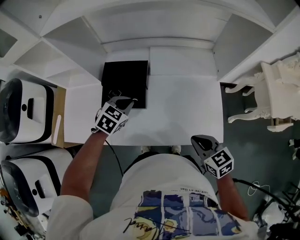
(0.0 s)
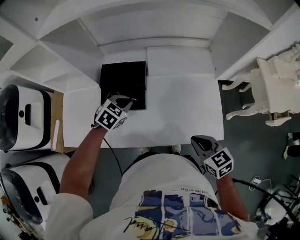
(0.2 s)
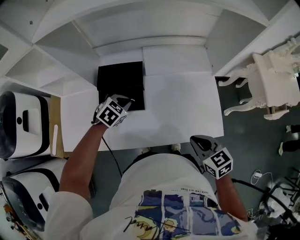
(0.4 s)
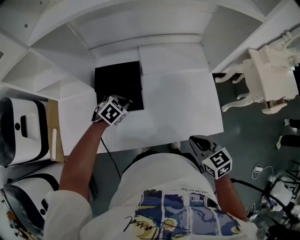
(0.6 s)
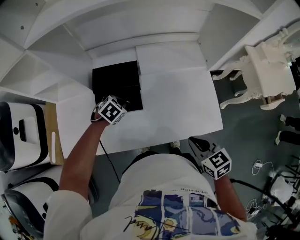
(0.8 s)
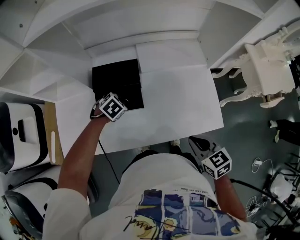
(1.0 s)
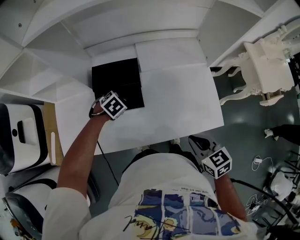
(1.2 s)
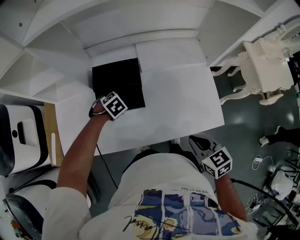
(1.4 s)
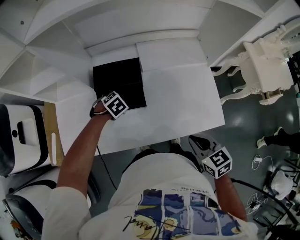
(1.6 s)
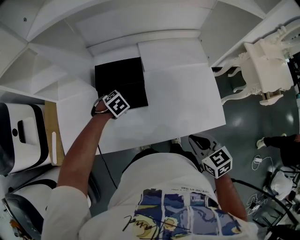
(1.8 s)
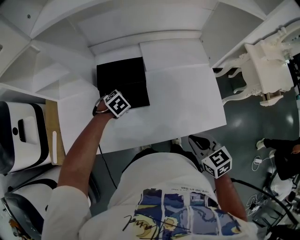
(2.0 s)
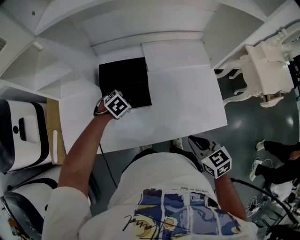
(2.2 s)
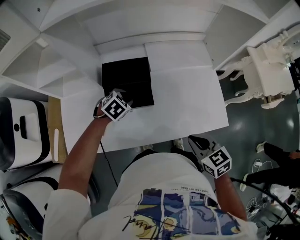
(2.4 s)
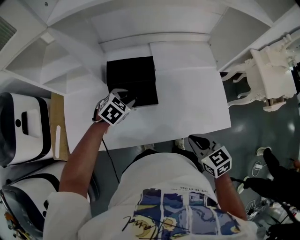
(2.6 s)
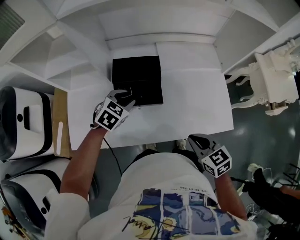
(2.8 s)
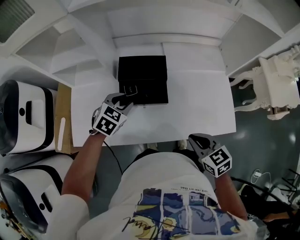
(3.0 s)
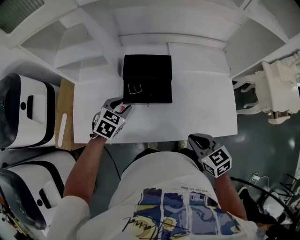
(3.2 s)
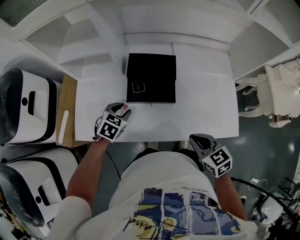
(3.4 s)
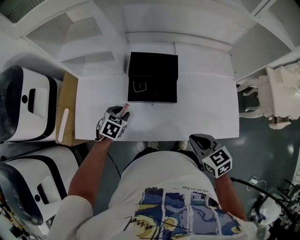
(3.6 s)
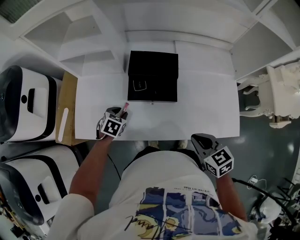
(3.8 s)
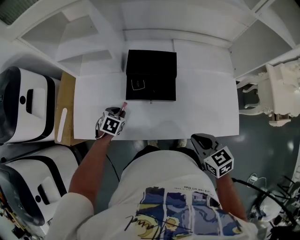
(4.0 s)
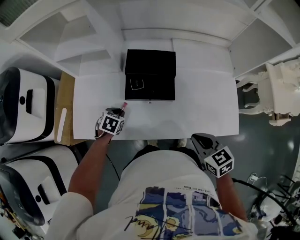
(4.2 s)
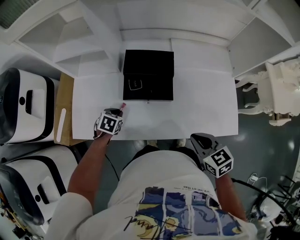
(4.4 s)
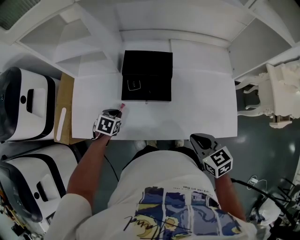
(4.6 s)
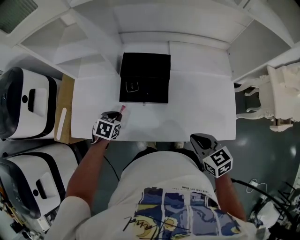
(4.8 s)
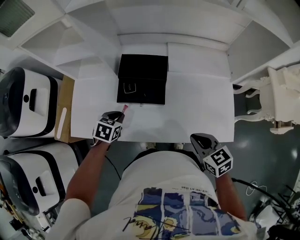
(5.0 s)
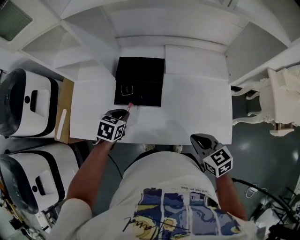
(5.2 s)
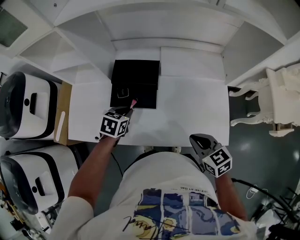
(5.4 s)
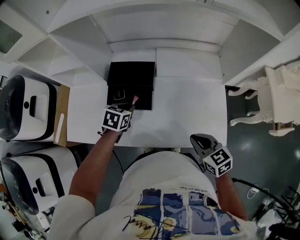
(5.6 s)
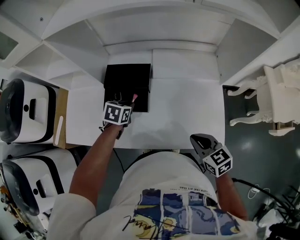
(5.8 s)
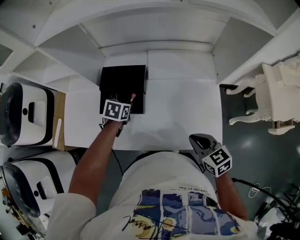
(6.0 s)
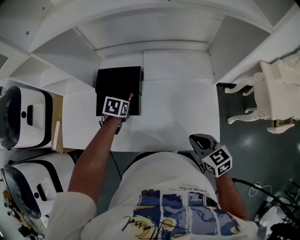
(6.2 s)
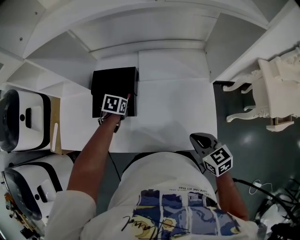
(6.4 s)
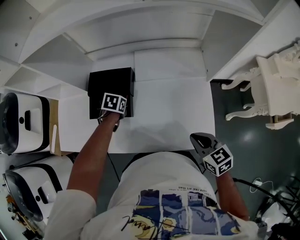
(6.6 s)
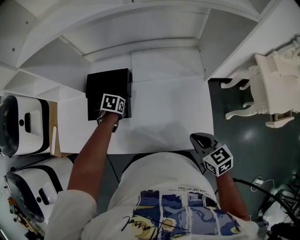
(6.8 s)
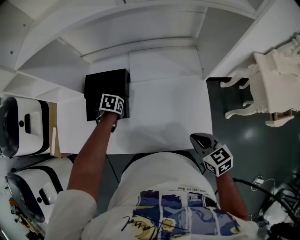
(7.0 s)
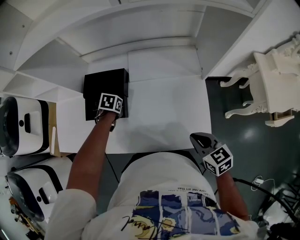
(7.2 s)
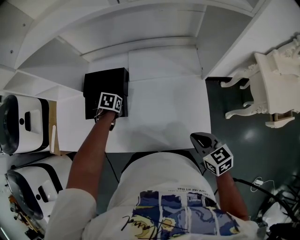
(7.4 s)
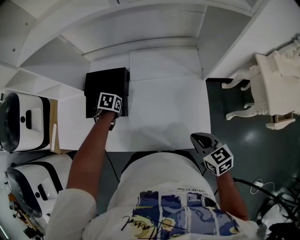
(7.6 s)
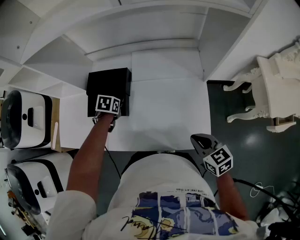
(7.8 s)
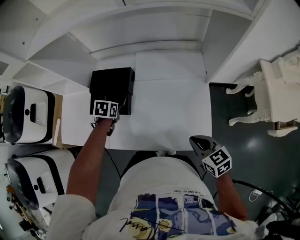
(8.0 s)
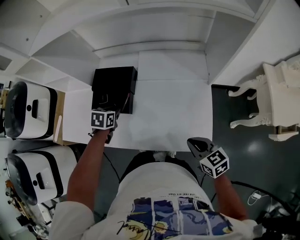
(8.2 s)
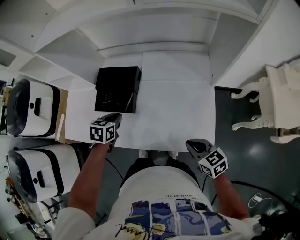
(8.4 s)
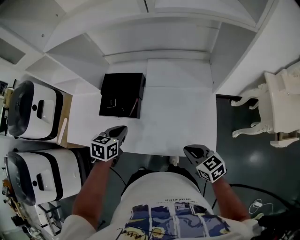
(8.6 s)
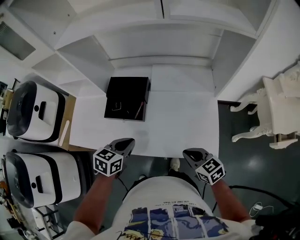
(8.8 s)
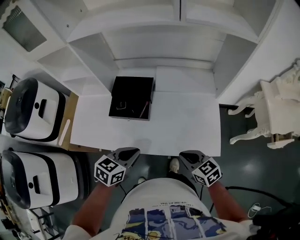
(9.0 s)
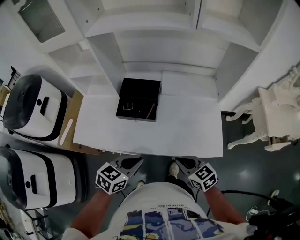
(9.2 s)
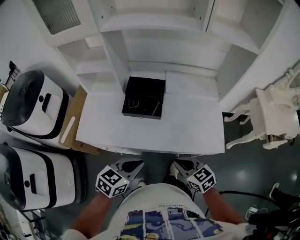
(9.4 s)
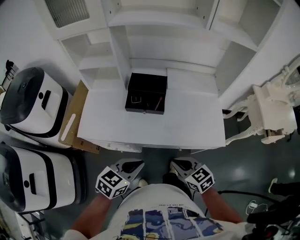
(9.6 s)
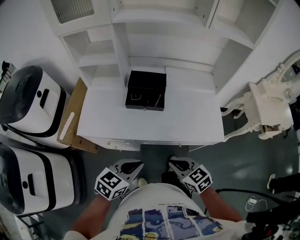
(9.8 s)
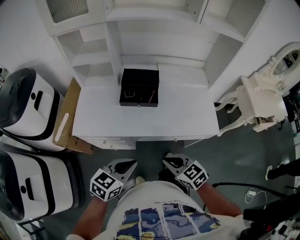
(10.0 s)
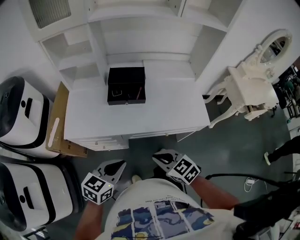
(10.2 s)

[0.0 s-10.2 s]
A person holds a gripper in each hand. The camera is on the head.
0.0 to 1.4 s: The right gripper changes place by about 5 cm. The left gripper heads downward, covering about 10 cm, and swivels roughly 40 degrees.
1.4 to 3.0 s: The right gripper ends up about 10 cm from where it was. Meanwhile the left gripper travels upward by roughly 10 cm, tilts its fingers approximately 30 degrees upward, and opens.
3.0 to 4.4 s: The left gripper travels downward and to the left by some 15 cm, and turns by some 30 degrees.
4.4 to 5.8 s: The left gripper goes some 20 cm to the right and upward; the right gripper is displaced to the right by approximately 15 cm.
5.8 to 7.2 s: The right gripper changes place by some 10 cm, while the left gripper travels downward by about 10 cm.
7.2 to 8.8 s: The left gripper shifts by some 25 cm, and tips its fingers upward by some 30 degrees, while the right gripper moves some 10 cm.
8.8 to 10.2 s: The right gripper moves to the left and backward, roughly 30 cm. The left gripper shifts roughly 25 cm backward and to the left.

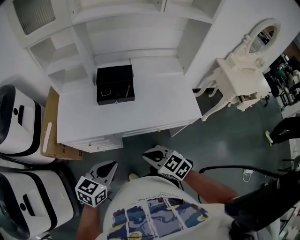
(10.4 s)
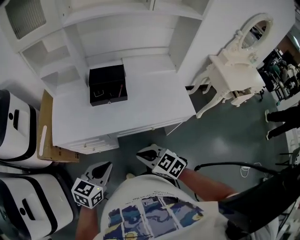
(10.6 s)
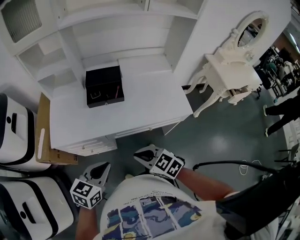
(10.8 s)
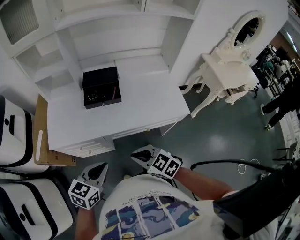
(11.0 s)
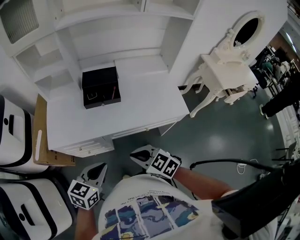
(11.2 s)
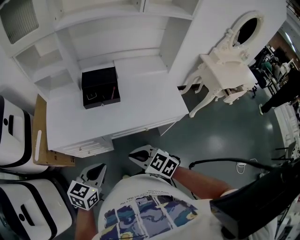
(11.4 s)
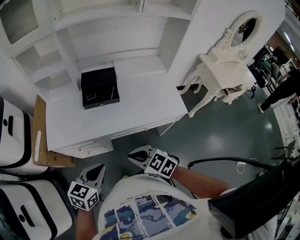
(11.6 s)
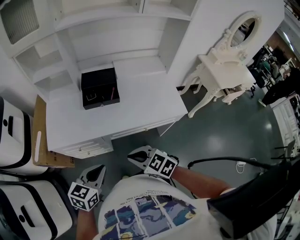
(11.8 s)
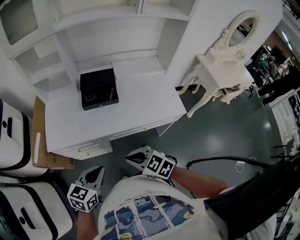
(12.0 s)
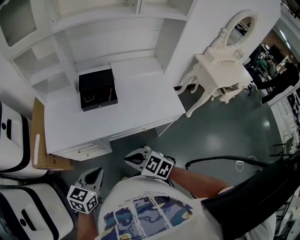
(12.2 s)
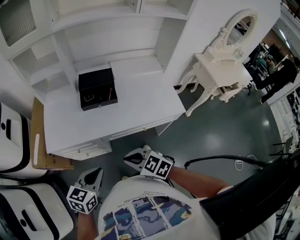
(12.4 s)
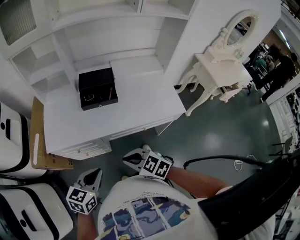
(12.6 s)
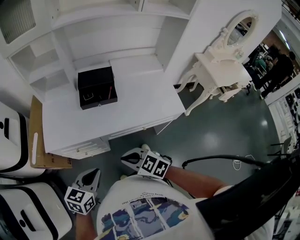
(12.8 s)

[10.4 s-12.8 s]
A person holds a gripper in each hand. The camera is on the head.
10.4 to 12.8 s: The grippers stay close to where they were, moving slightly.

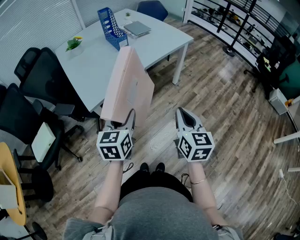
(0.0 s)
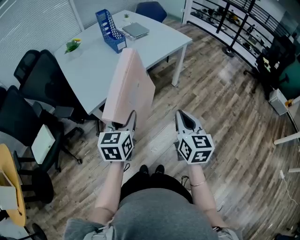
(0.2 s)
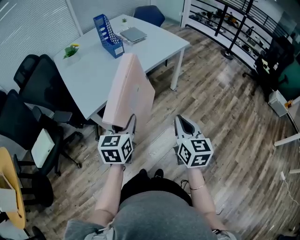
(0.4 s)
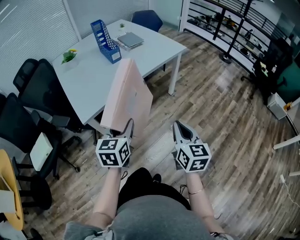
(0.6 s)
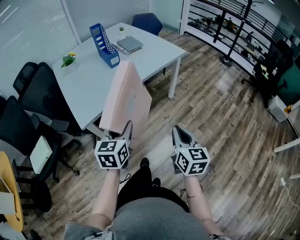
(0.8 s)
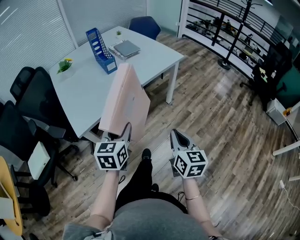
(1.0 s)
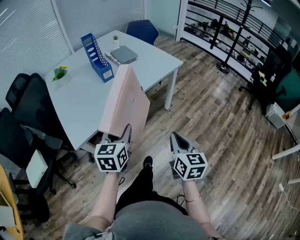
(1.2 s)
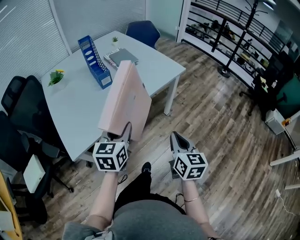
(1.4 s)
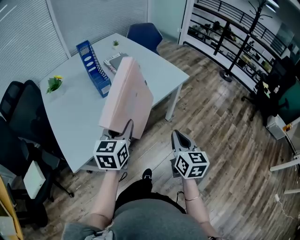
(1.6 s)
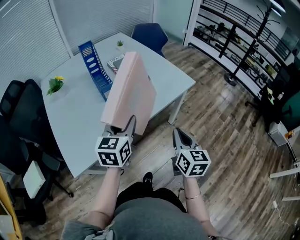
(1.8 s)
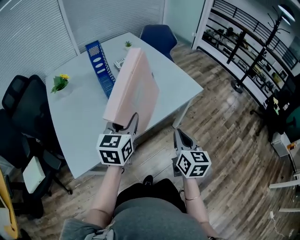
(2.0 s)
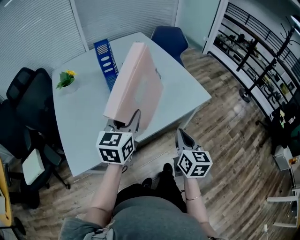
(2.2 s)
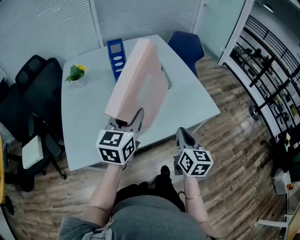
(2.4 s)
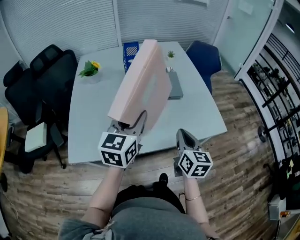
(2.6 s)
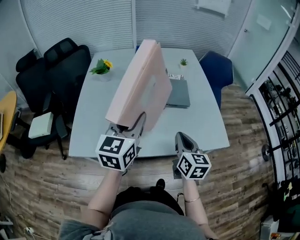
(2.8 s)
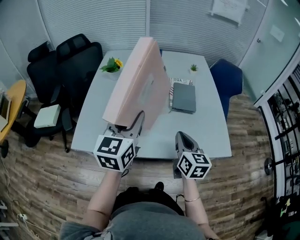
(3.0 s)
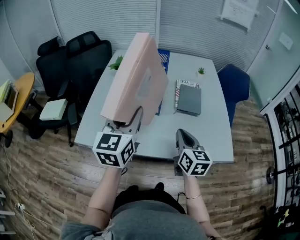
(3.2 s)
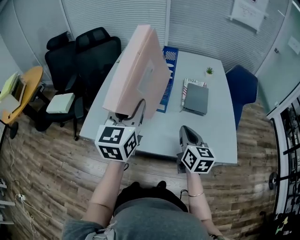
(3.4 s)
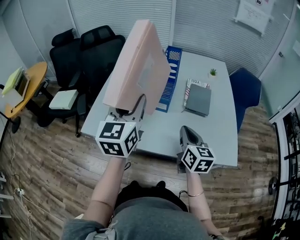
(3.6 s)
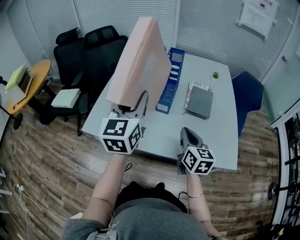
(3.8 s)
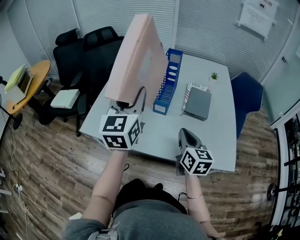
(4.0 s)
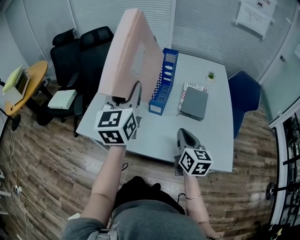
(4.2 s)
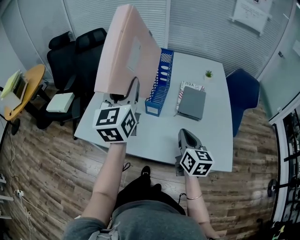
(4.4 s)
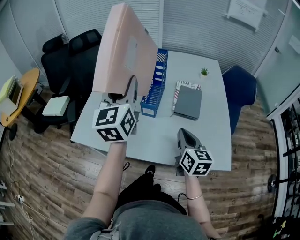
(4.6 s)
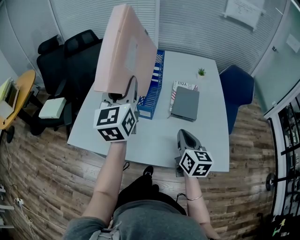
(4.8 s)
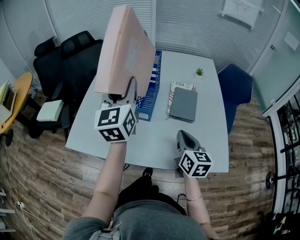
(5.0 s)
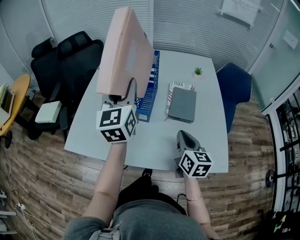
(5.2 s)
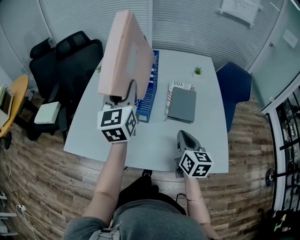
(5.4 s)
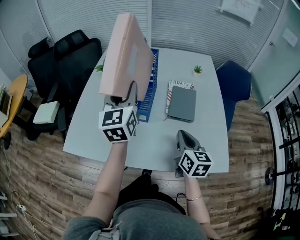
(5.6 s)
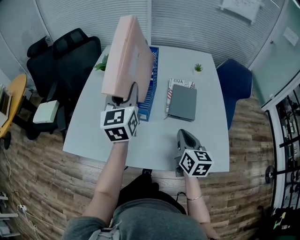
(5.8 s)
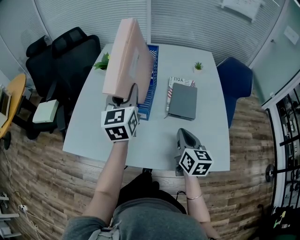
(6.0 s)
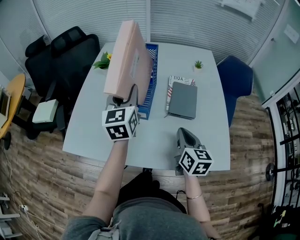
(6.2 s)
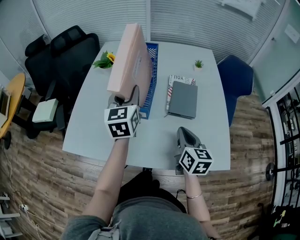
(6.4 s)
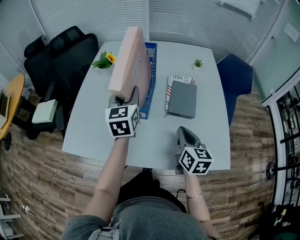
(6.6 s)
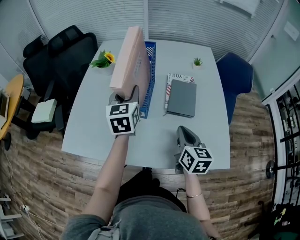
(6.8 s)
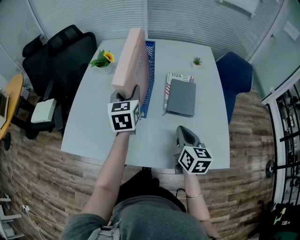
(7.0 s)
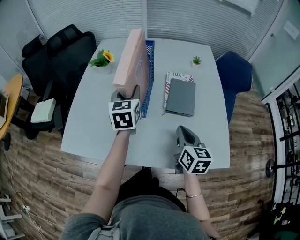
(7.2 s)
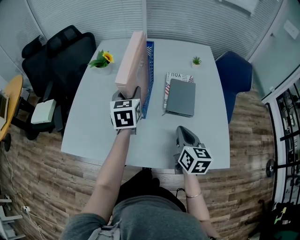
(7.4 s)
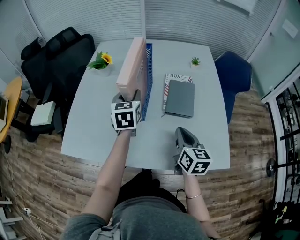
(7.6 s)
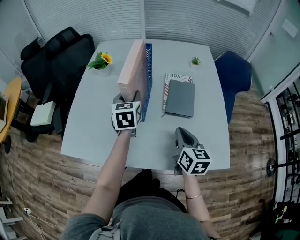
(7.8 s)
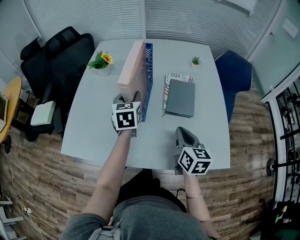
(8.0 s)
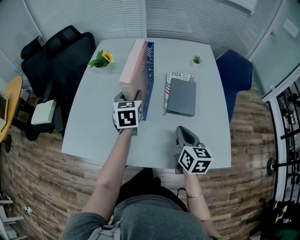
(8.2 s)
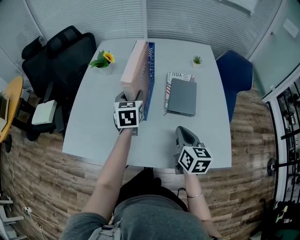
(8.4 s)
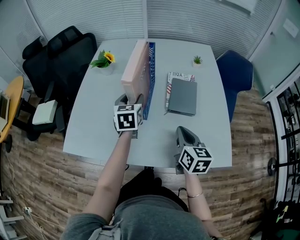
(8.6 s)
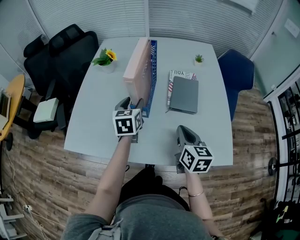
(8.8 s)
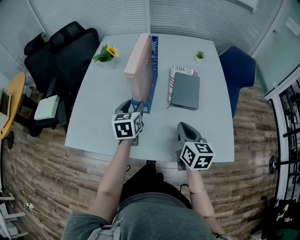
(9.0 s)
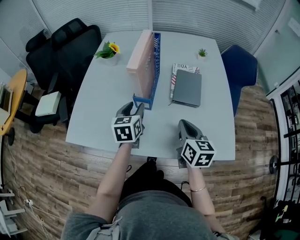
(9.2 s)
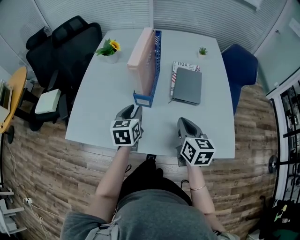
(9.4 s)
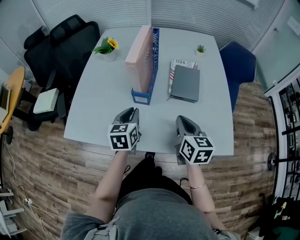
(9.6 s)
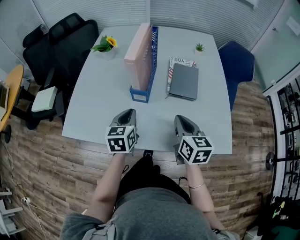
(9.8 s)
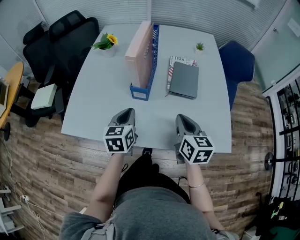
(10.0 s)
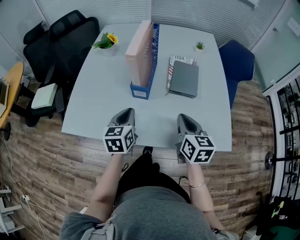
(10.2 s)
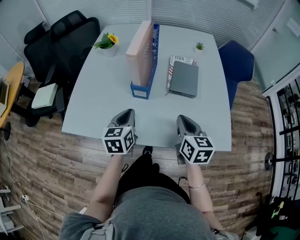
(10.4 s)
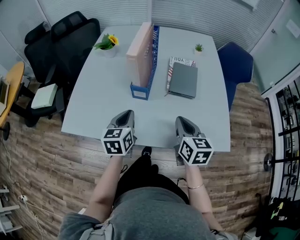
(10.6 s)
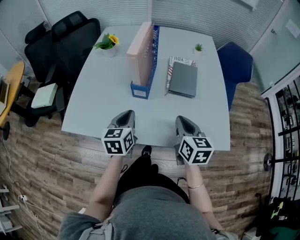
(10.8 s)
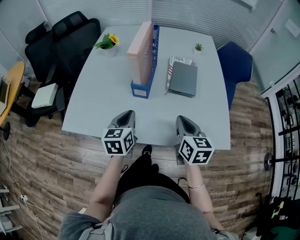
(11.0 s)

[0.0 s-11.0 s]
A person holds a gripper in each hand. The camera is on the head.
0.0 to 1.6 s: The grippers both shift forward by approximately 25 cm.
1.6 to 3.2 s: The left gripper shifts by roughly 20 cm, and turns by approximately 50 degrees. The right gripper moves about 30 cm, and swivels some 50 degrees.
3.2 to 4.8 s: The right gripper shifts roughly 5 cm to the right; the left gripper is displaced forward and upward by roughly 10 cm.
4.8 to 6.2 s: The left gripper heads downward and forward, covering roughly 10 cm.
6.2 to 7.8 s: The left gripper travels downward by about 10 cm.
7.8 to 9.4 s: The left gripper shifts roughly 15 cm backward and downward.
9.4 to 11.0 s: The left gripper travels backward by some 10 cm, and closes.
